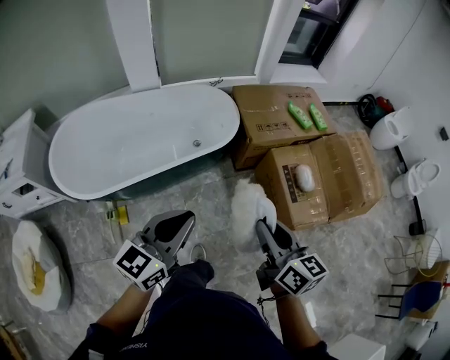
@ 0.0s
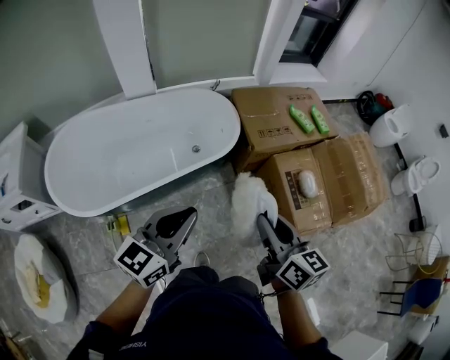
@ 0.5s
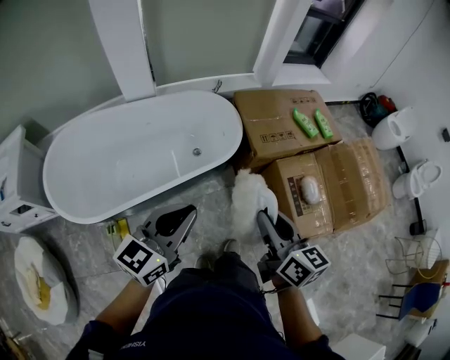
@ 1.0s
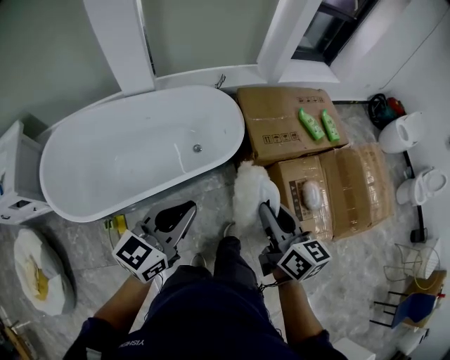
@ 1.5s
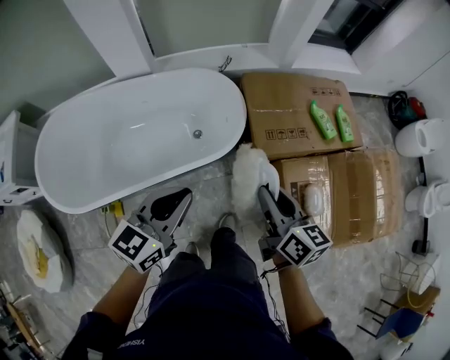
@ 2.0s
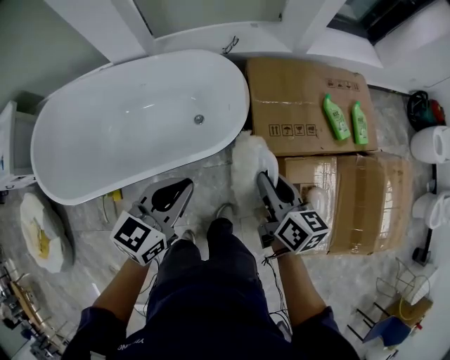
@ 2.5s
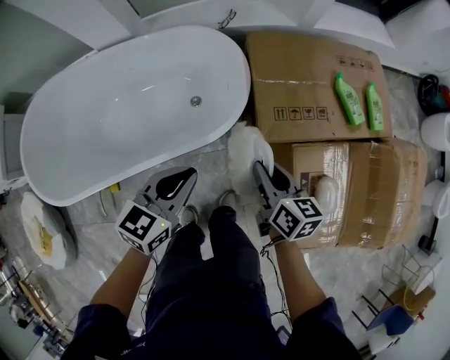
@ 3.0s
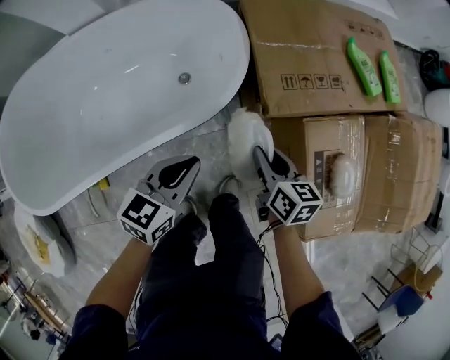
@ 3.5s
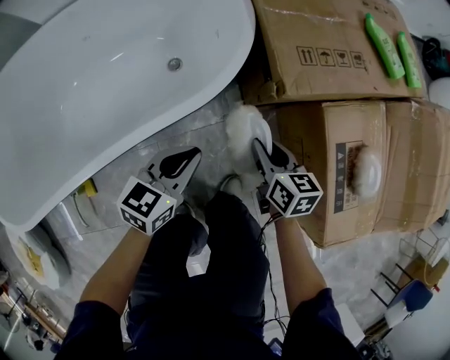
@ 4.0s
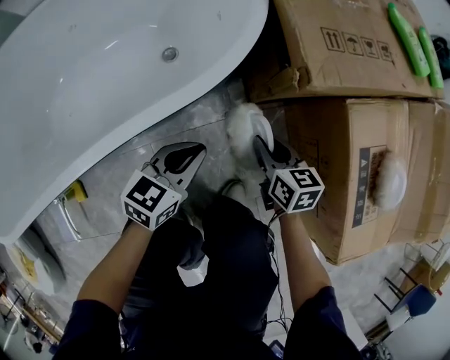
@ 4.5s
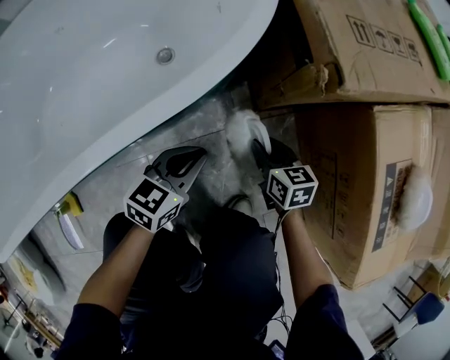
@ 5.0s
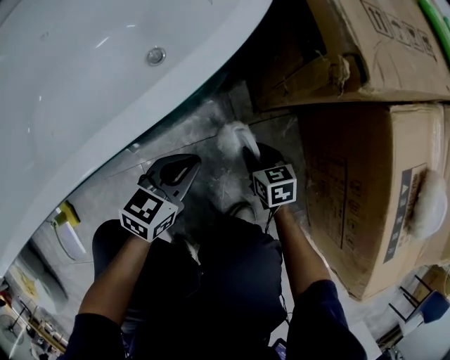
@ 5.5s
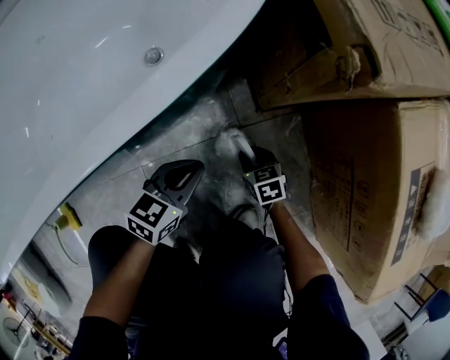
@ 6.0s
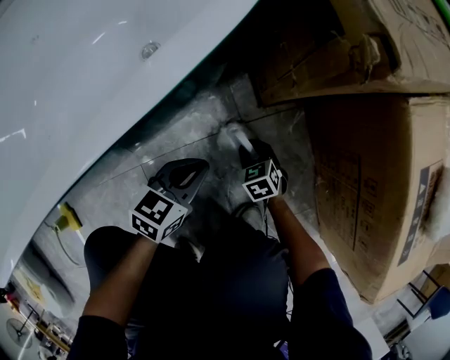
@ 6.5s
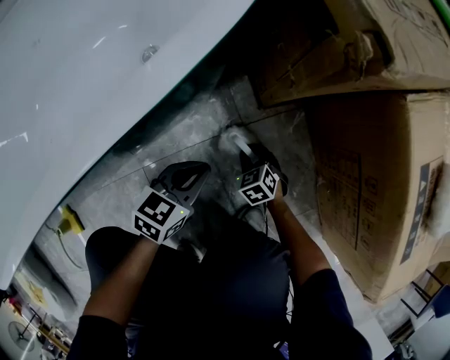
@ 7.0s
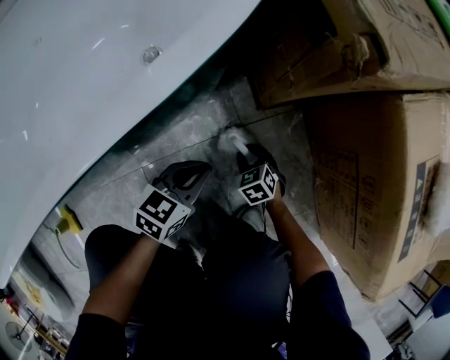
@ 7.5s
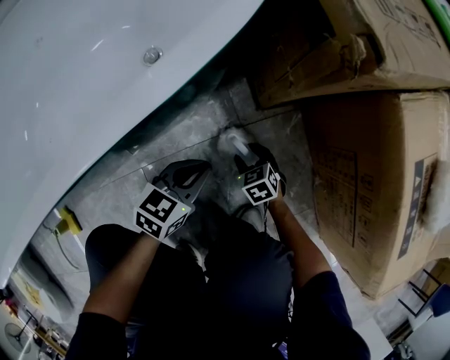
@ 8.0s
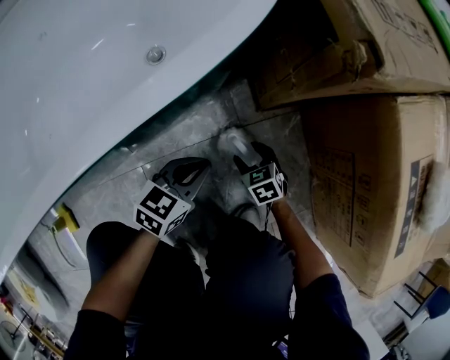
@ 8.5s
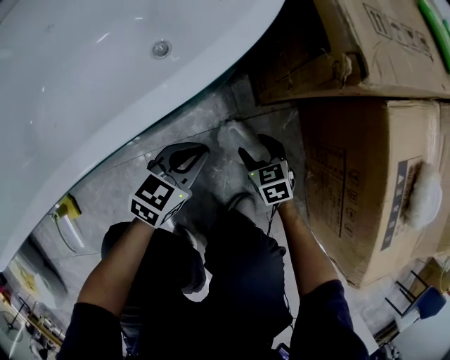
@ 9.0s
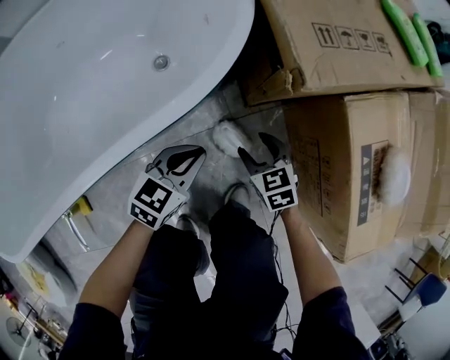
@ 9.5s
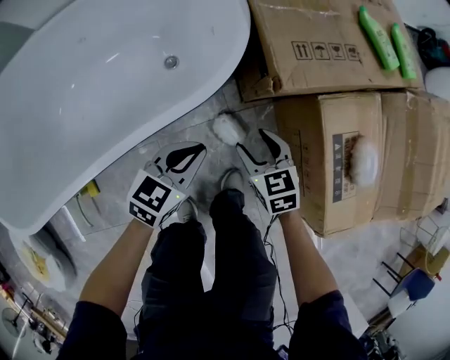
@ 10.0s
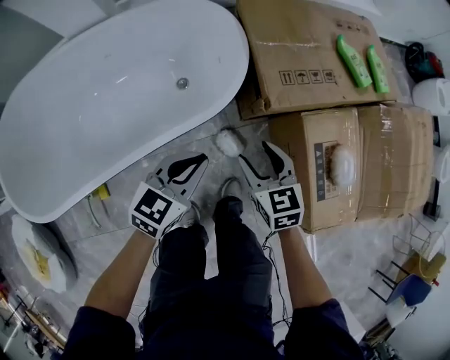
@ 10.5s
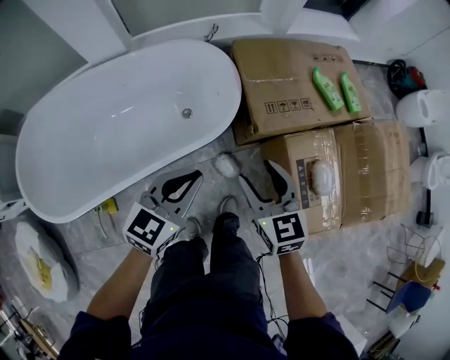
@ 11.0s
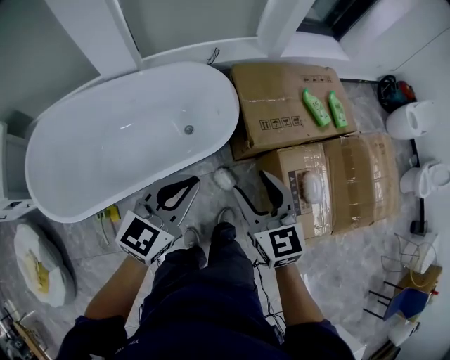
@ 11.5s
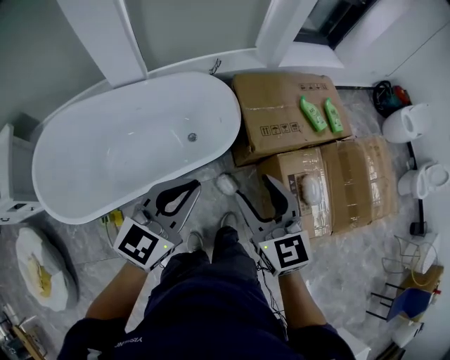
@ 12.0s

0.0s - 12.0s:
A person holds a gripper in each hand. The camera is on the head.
0.0s - 2.0s: The two grippers go roughly 30 cm forward.
2.0s - 4.0s: The grippers both shift downward by about 50 cm.
4.0s - 6.0s: The grippers both shift downward by some 35 cm. The right gripper swivels about 30 degrees.
6.0s - 8.0s: The right gripper opens.
8.0s - 10.0s: Both grippers move upward, some 35 cm.
10.0s - 12.0s: Both grippers move upward, roughly 50 cm. The right gripper changes its angle by about 30 degrees, while the left gripper swivels roughly 30 degrees.

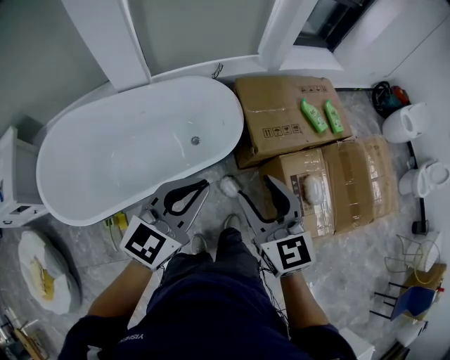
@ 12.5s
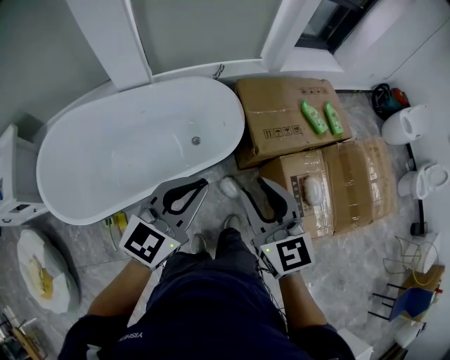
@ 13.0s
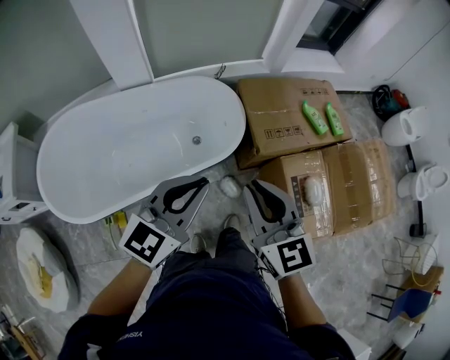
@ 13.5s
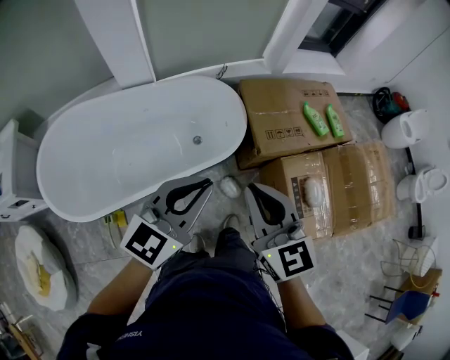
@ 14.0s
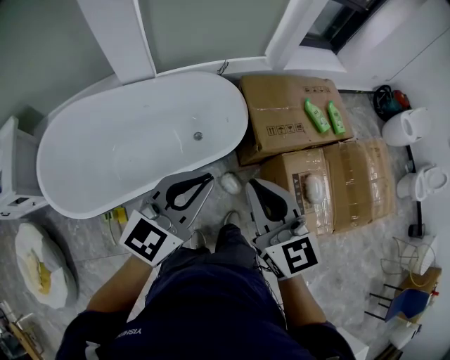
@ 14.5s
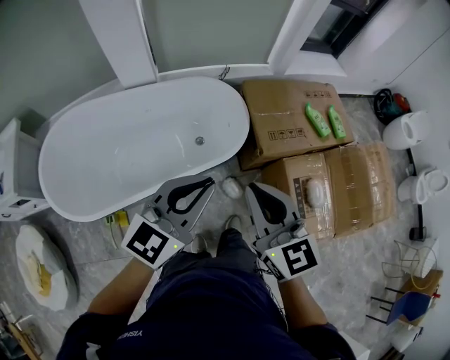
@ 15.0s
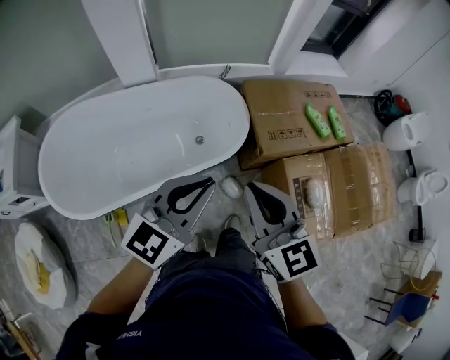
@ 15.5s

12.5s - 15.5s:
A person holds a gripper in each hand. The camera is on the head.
12.5s - 14.0s: The right gripper closes its fingers.
14.0s - 15.5s: The grippers make only small movements.

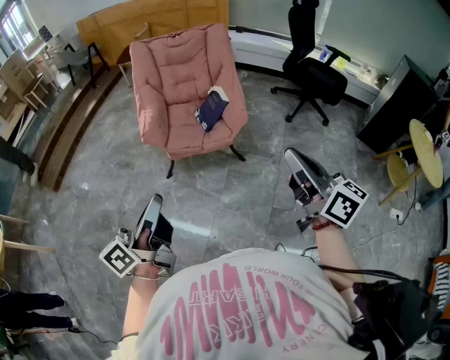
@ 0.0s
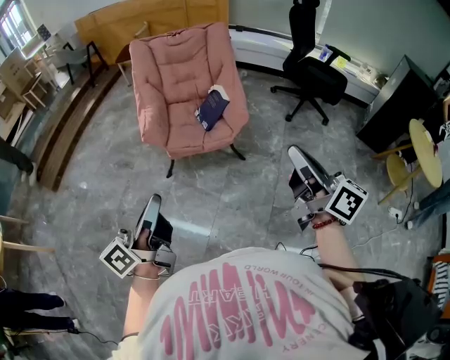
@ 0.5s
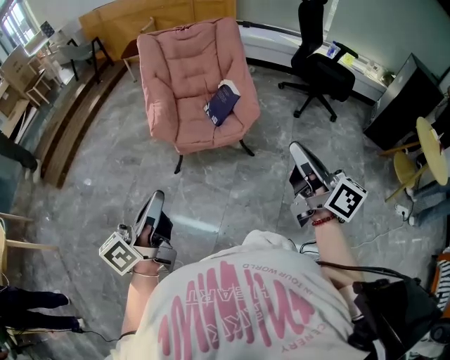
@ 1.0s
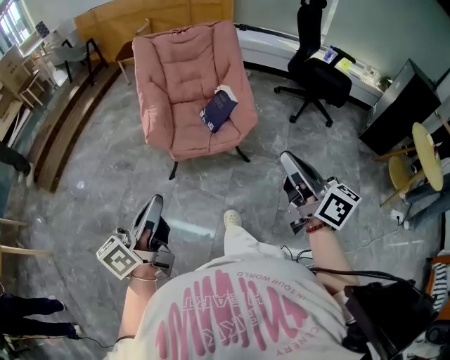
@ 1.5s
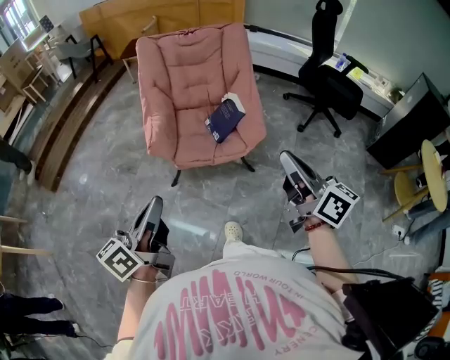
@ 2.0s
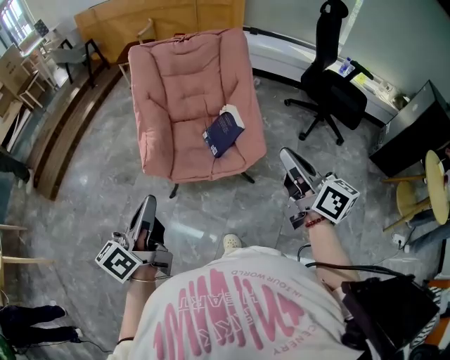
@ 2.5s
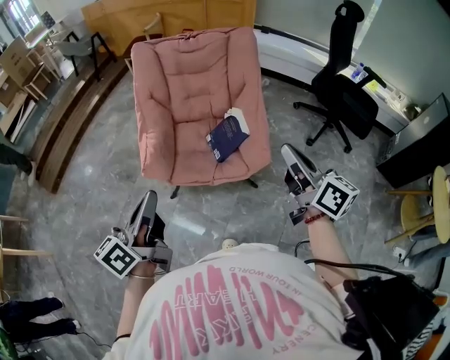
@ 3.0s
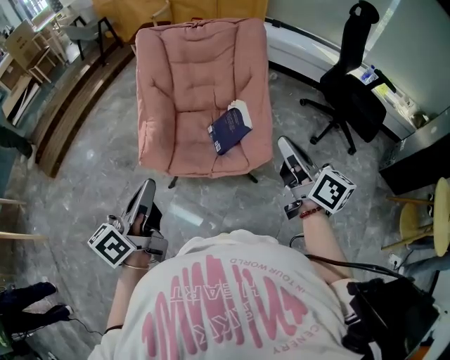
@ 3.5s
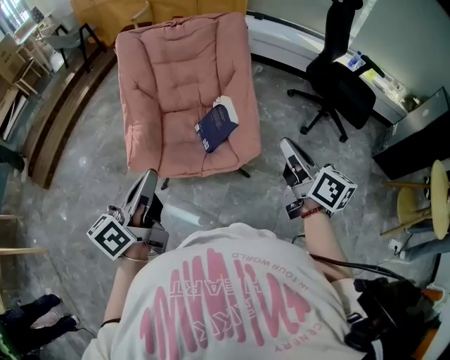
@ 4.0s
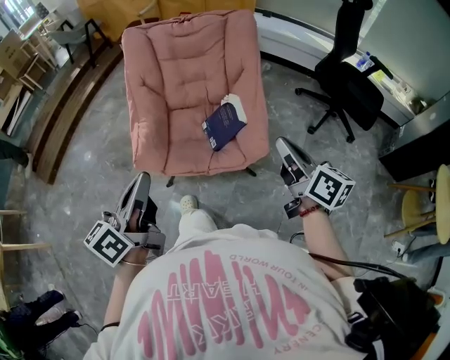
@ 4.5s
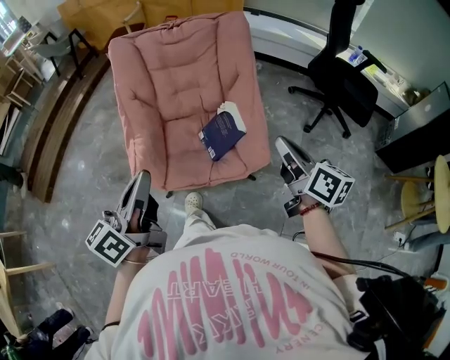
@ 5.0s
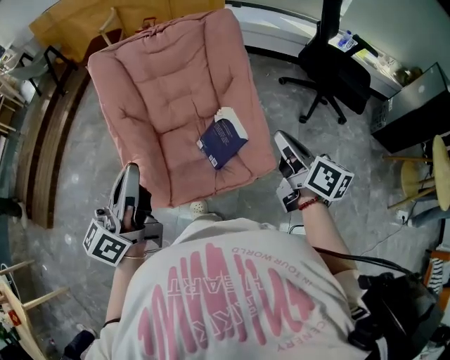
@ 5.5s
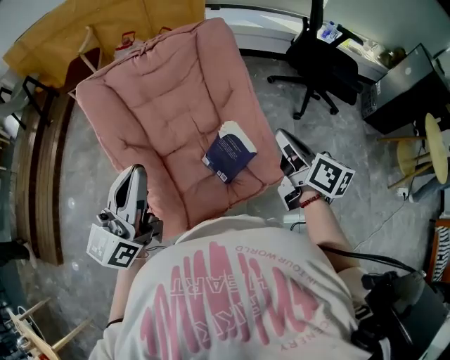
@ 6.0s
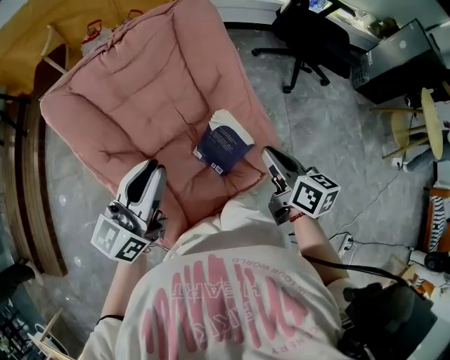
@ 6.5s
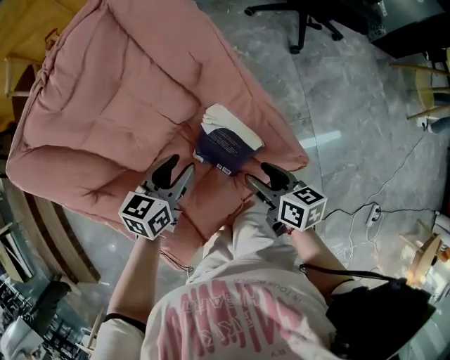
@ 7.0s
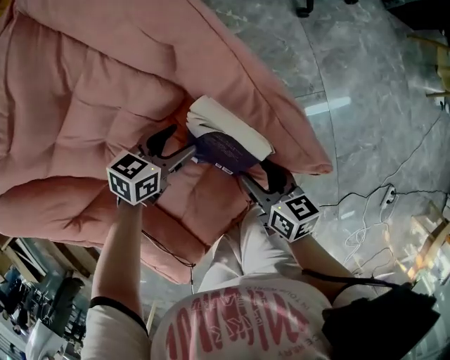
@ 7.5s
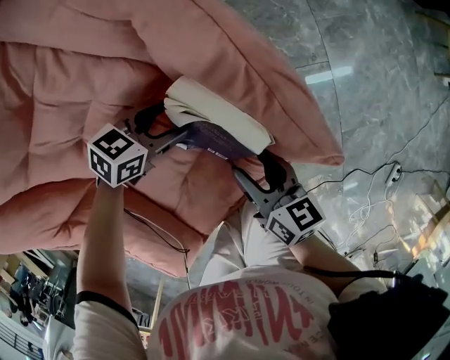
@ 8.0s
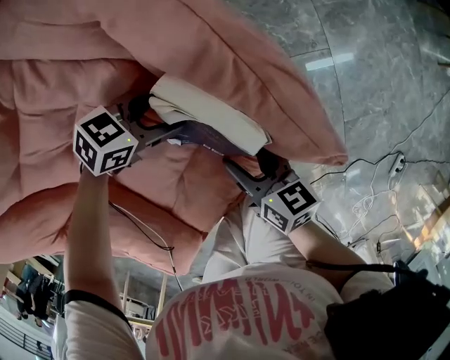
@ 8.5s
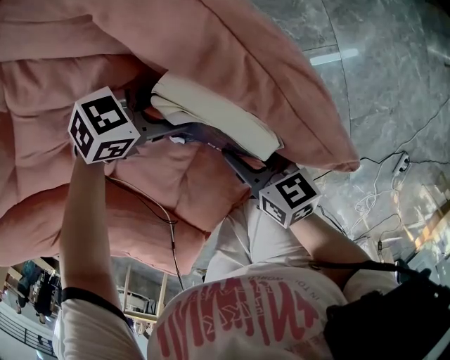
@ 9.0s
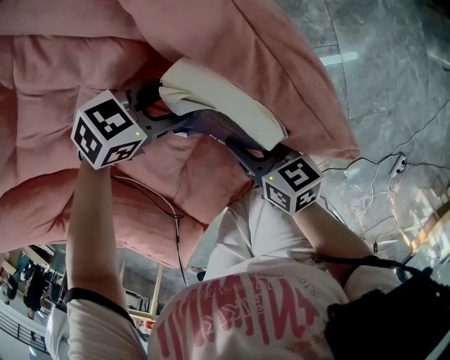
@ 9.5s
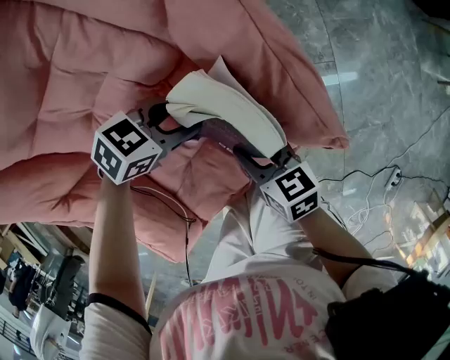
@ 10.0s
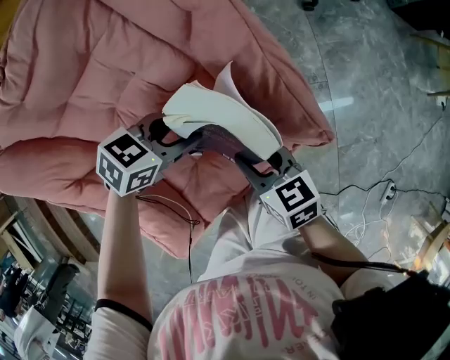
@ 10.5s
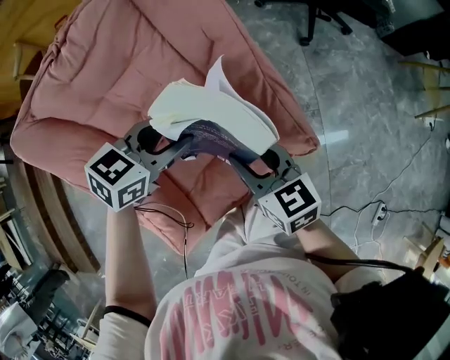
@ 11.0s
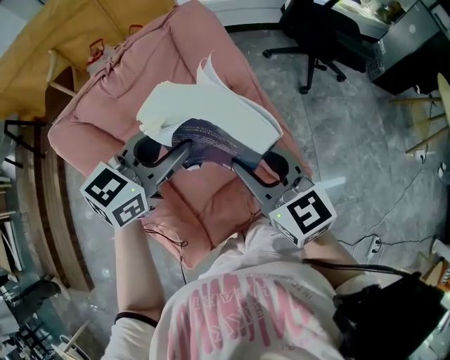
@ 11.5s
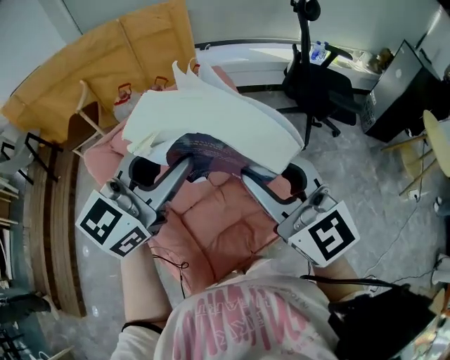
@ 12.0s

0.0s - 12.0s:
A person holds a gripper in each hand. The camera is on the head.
0.0s - 2.0s: The two grippers go roughly 10 cm forward.
2.0s - 4.0s: The grippers both shift forward and to the right by approximately 20 cm.
4.0s - 6.0s: The right gripper travels forward and to the left by about 20 cm. Meanwhile the left gripper goes approximately 25 cm forward, and swivels roughly 30 degrees.
6.0s - 8.0s: Both grippers travel together downward, roughly 35 cm. The right gripper swivels approximately 20 degrees, and opens. Meanwhile the left gripper tilts its fingers roughly 50 degrees downward, and opens.
8.0s - 10.0s: The right gripper changes its angle by some 20 degrees. The left gripper ends up approximately 5 cm from where it was.
10.0s - 12.0s: The grippers both shift upward by about 50 cm. The left gripper tilts its fingers roughly 50 degrees upward, while the right gripper points its fingers some 40 degrees further upward.
